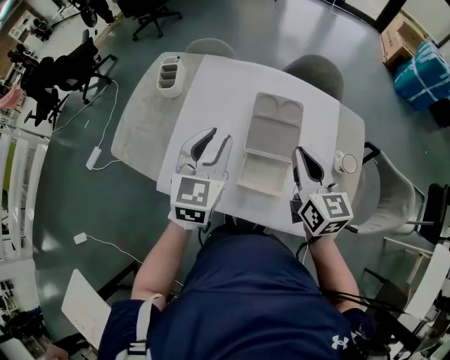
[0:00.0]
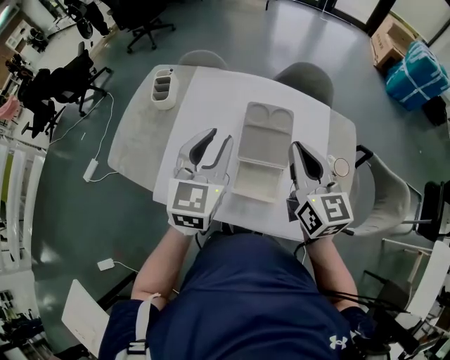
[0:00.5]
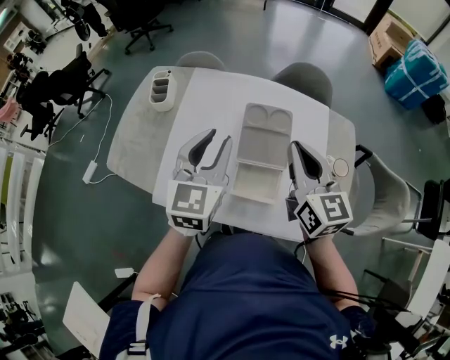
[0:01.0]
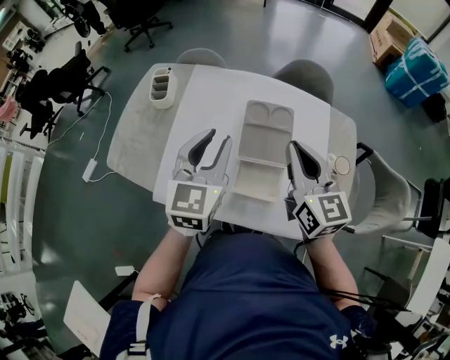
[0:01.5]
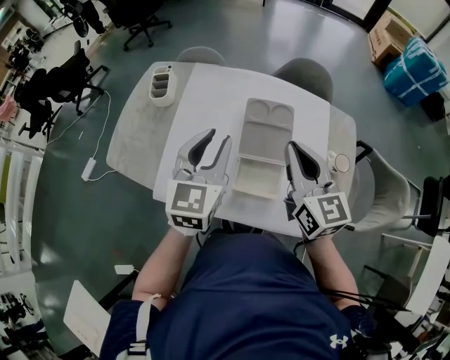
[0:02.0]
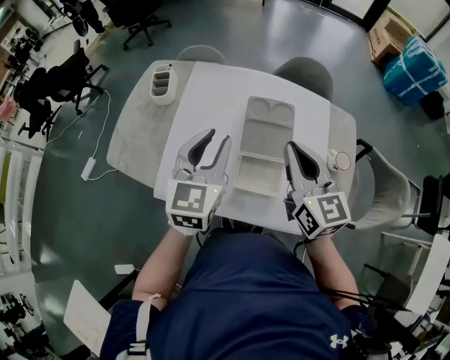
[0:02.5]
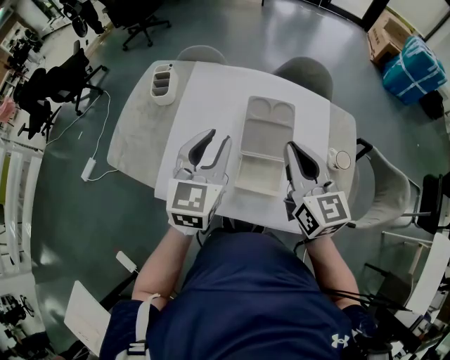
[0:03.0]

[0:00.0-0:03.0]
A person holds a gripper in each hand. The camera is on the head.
0:00.0 to 0:01.5: The right gripper goes roughly 5 cm upward.
0:01.5 to 0:03.0: The grippers move only a little.

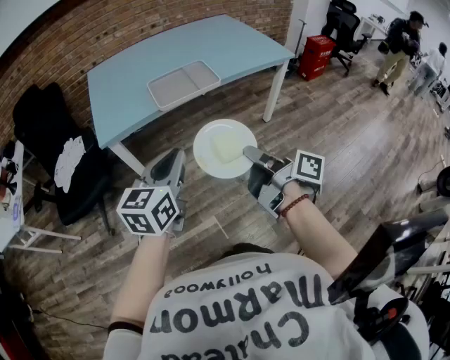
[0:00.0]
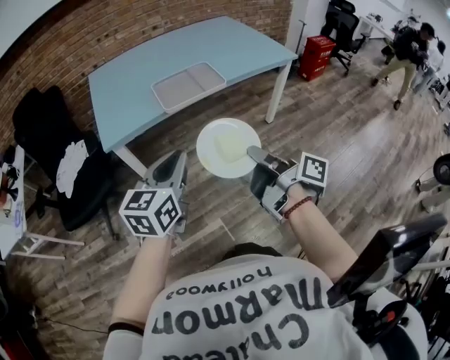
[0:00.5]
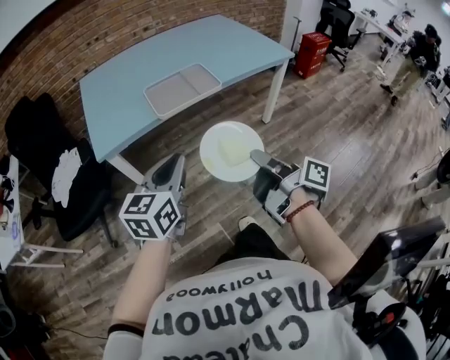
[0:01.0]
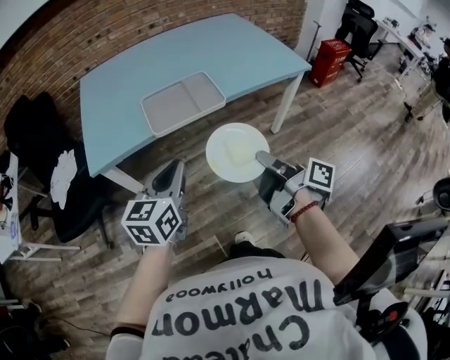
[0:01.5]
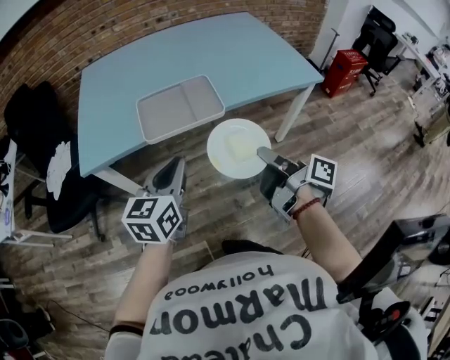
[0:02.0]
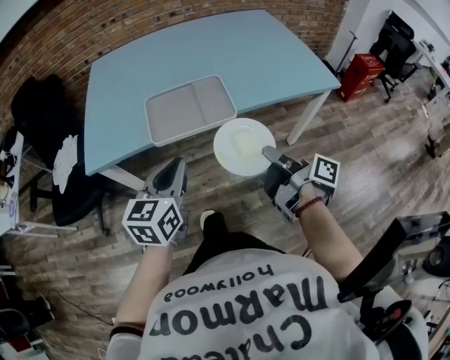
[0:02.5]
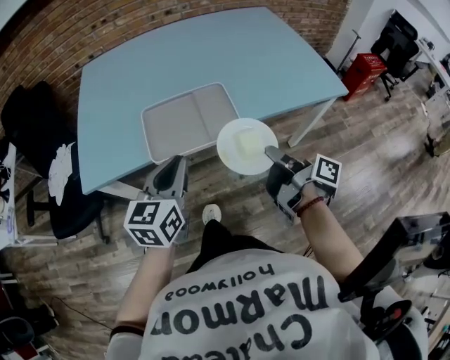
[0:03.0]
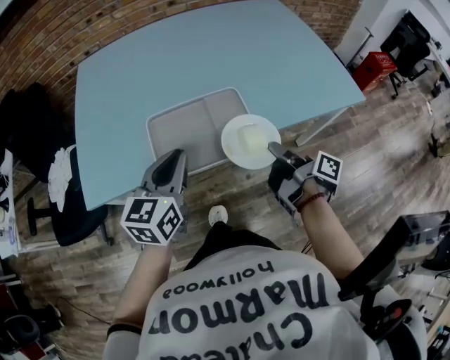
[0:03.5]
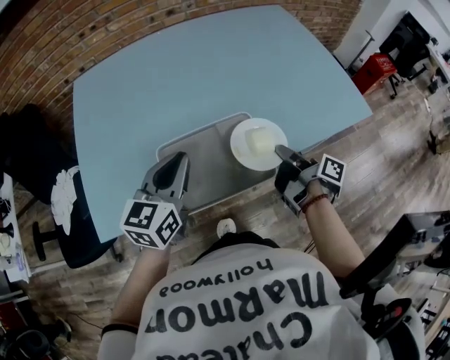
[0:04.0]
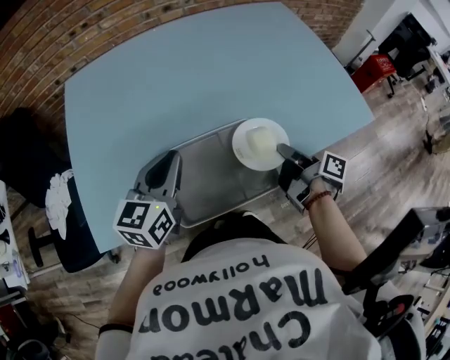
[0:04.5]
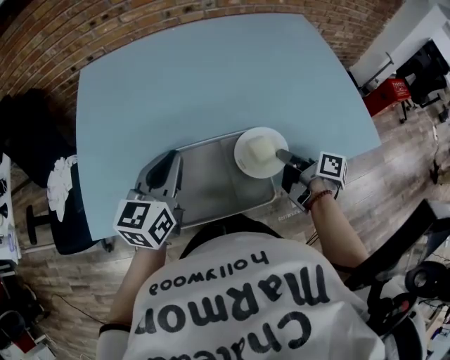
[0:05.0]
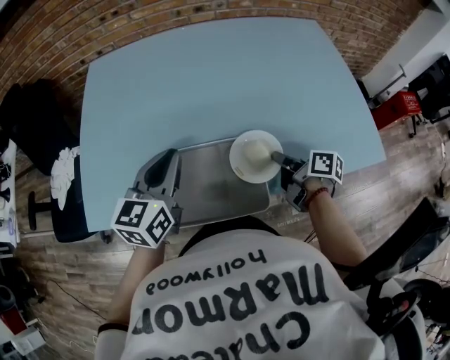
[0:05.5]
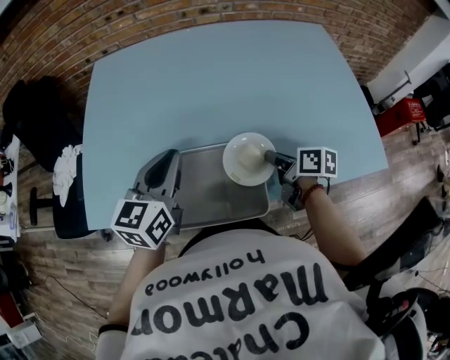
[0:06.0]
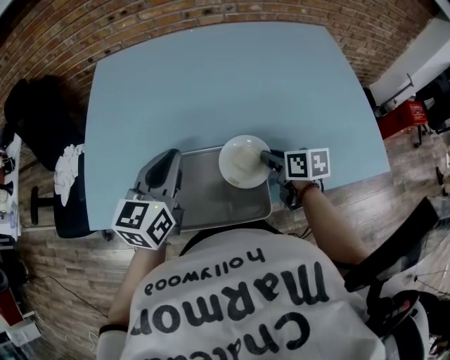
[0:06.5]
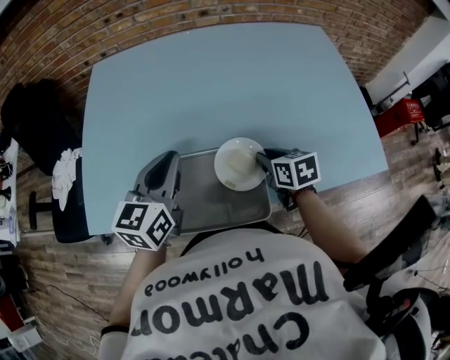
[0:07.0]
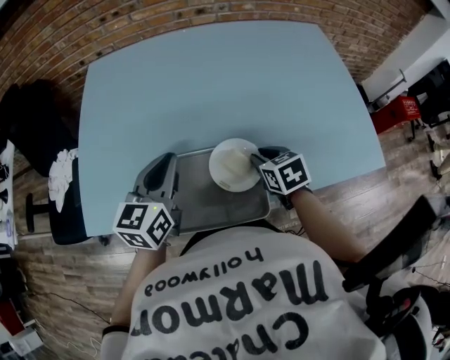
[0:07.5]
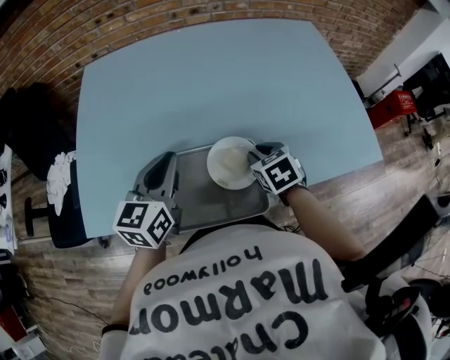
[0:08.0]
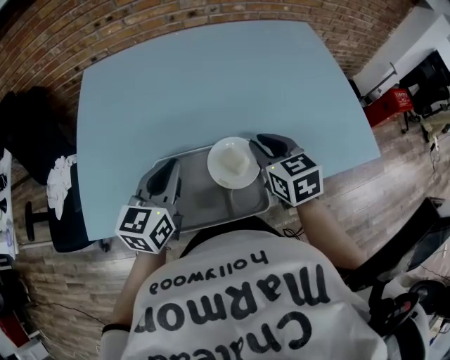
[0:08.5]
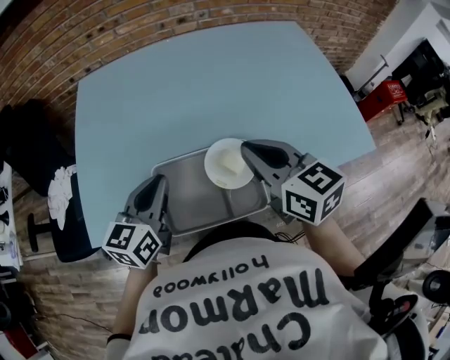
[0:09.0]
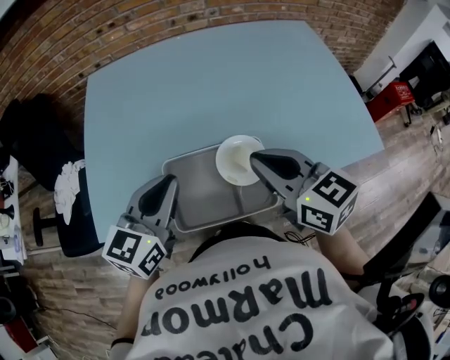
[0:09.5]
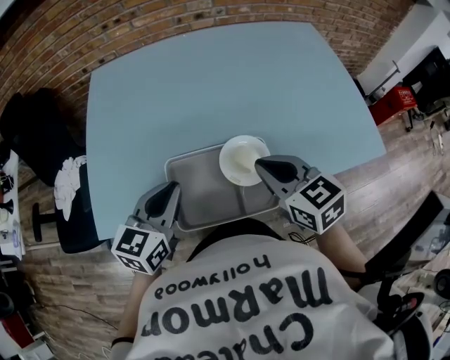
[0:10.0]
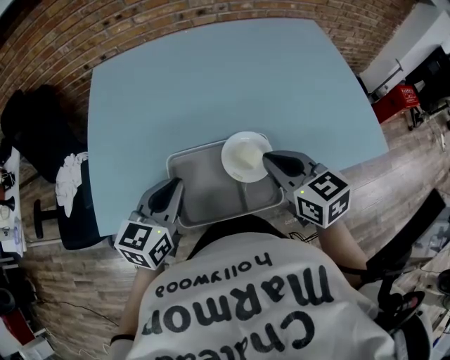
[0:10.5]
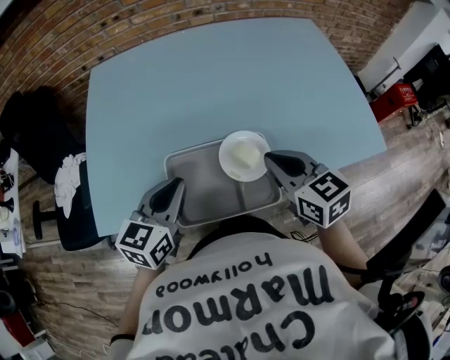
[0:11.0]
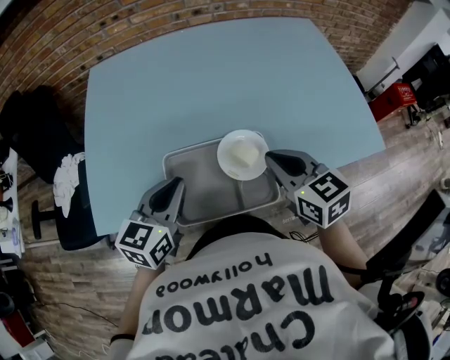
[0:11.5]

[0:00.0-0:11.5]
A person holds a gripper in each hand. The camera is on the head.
0:00.0 to 0:02.0: The right gripper shifts approximately 25 cm forward and to the right, while the left gripper heads forward, covering some 20 cm.
0:02.0 to 0:04.0: Both grippers travel together forward, approximately 30 cm.
0:04.0 to 0:06.0: The right gripper travels forward by approximately 10 cm, and rotates some 50 degrees. The left gripper is displaced forward by approximately 5 cm.
0:06.0 to 0:07.5: The right gripper twists approximately 40 degrees counterclockwise, seen from behind.
0:07.5 to 0:09.5: The left gripper goes about 10 cm backward and upward. Meanwhile the right gripper heads upward and backward, covering some 20 cm, and tips its fingers upward by some 30 degrees.
0:09.5 to 0:11.5: The grippers both shift downward by some 5 cm.

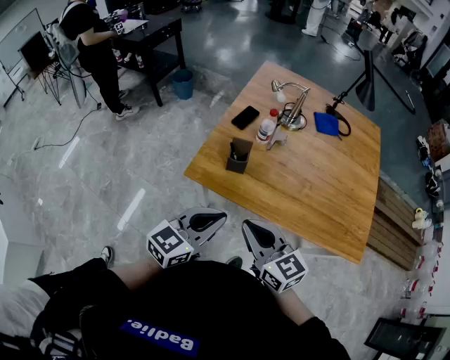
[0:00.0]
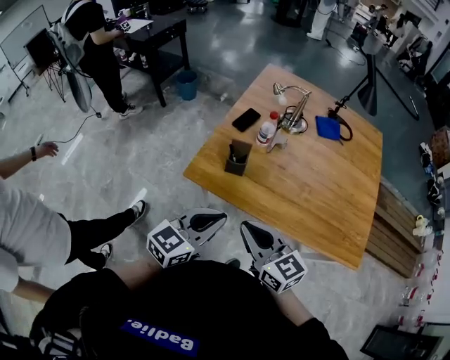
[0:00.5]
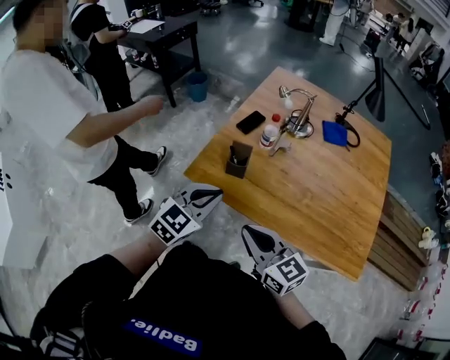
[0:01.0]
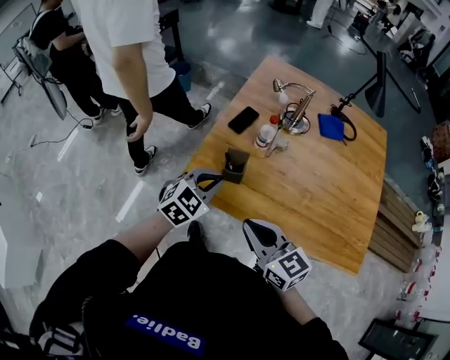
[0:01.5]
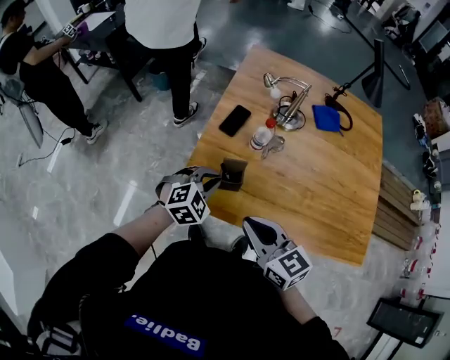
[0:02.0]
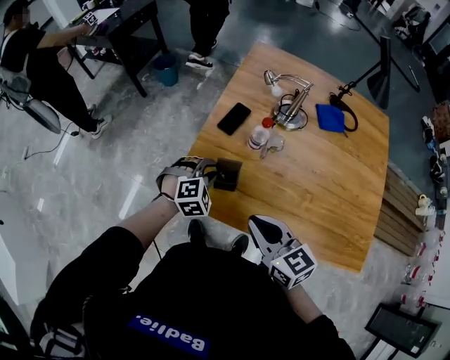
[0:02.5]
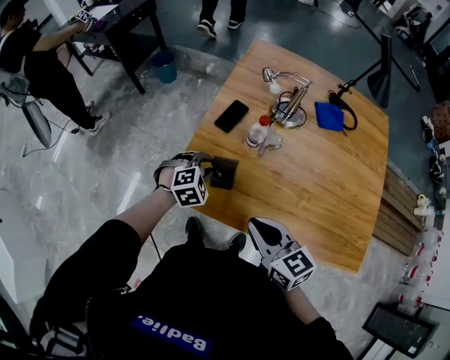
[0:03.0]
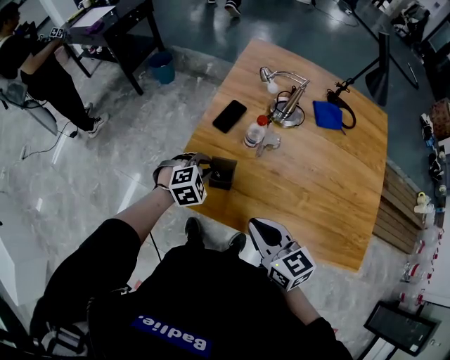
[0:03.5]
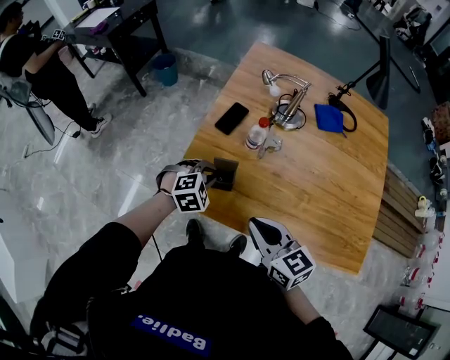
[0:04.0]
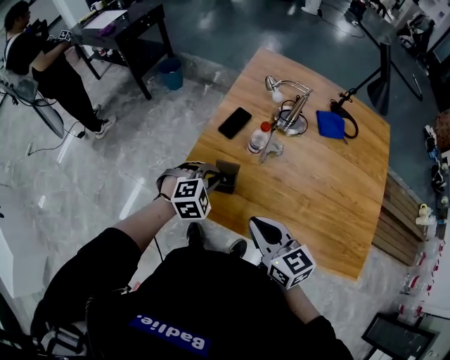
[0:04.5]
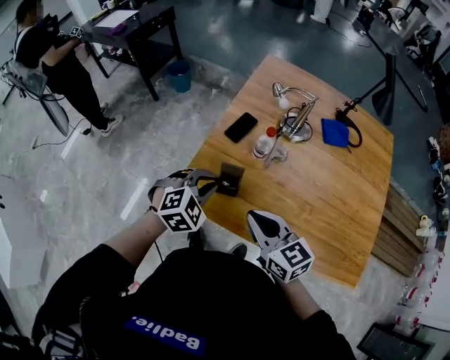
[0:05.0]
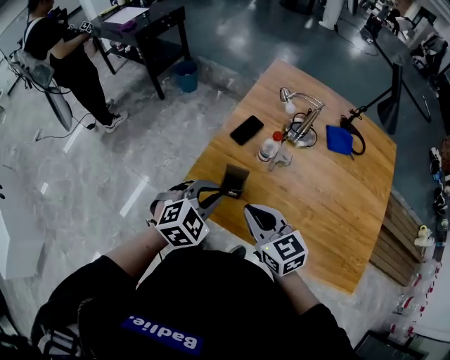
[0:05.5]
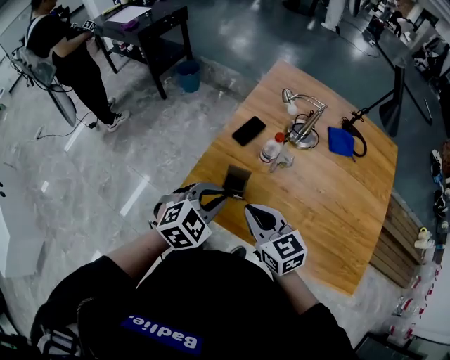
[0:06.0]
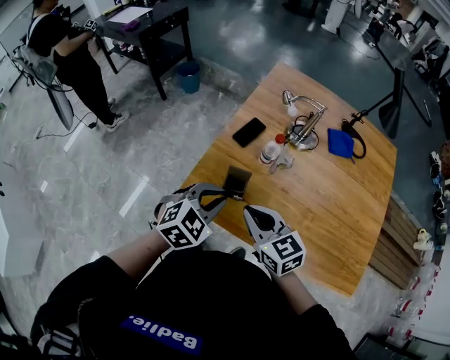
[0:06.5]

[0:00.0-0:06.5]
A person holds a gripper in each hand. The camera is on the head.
0:00.0 to 0:02.0: The right gripper moves forward, about 15 cm. The left gripper moves forward and downward, roughly 30 cm, and tips its fingers downward by roughly 30 degrees.
0:02.0 to 0:04.5: The right gripper heads to the right, covering roughly 5 cm.
0:04.5 to 0:06.5: The right gripper shifts by some 5 cm. Meanwhile the left gripper travels upward and backward by some 10 cm, and rotates roughly 30 degrees.

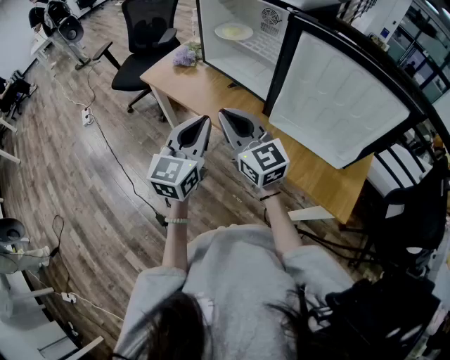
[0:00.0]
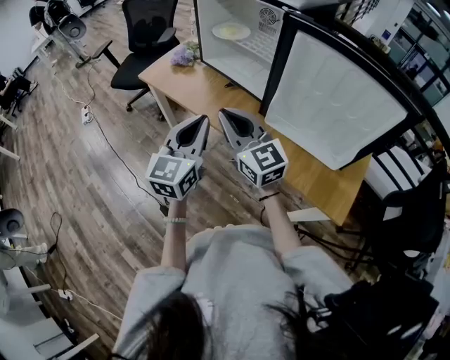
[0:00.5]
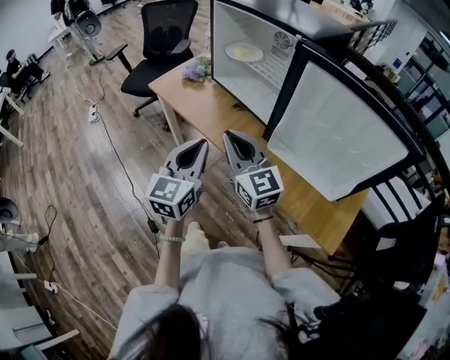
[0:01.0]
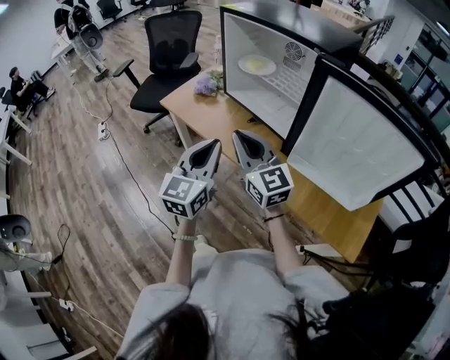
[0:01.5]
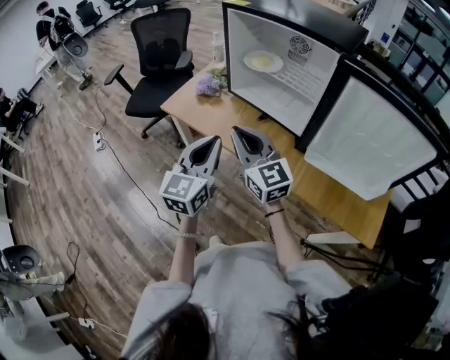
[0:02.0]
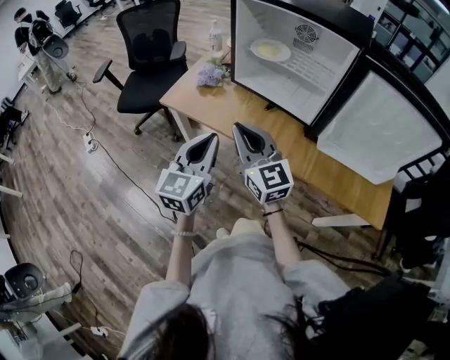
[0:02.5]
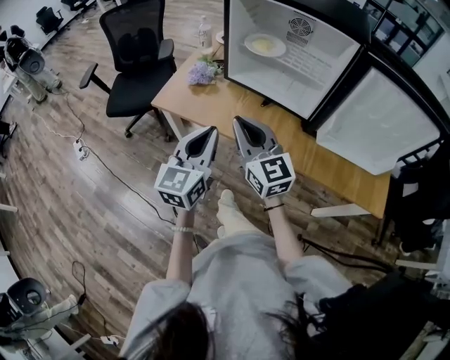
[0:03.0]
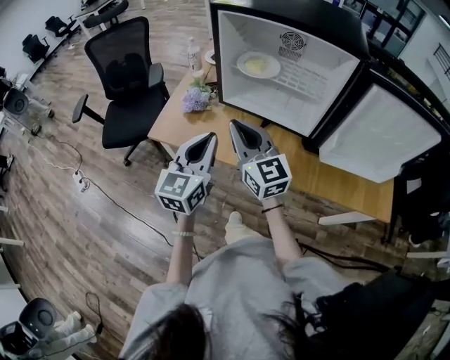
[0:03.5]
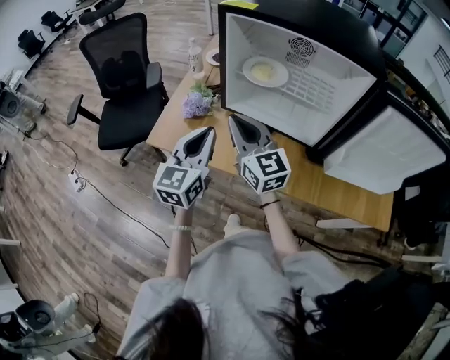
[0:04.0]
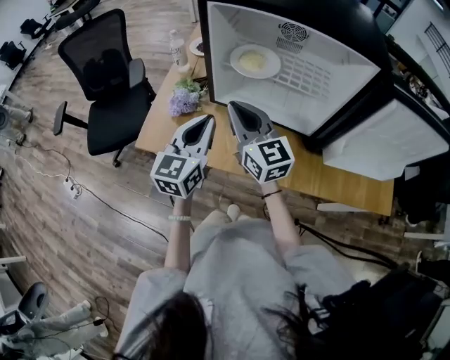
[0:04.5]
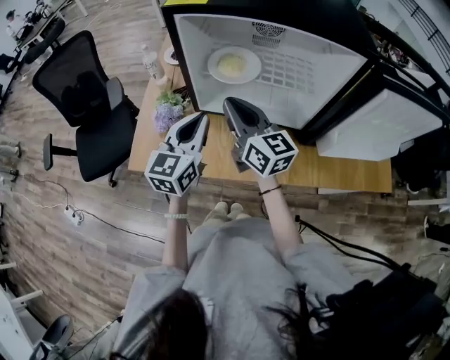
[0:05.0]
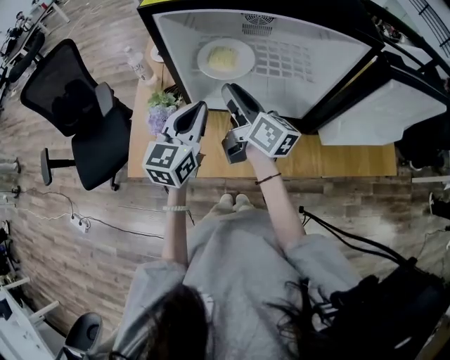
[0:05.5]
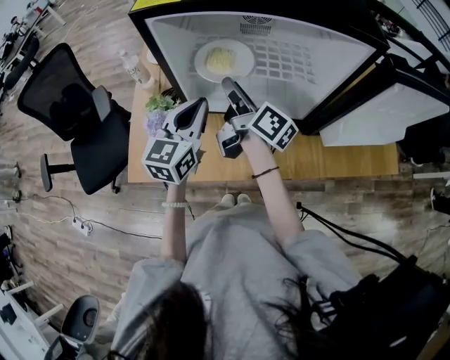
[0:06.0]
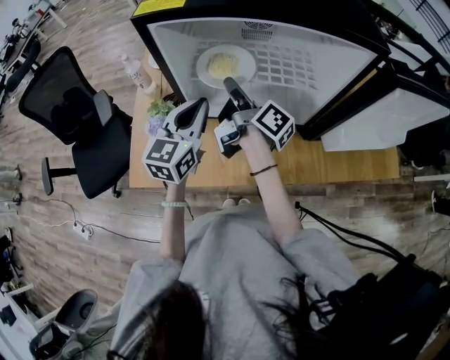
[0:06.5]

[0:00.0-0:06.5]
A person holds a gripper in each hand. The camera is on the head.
0:00.0 to 0:02.0: Both grippers move forward and to the left, about 15 cm.
0:02.0 to 0:04.5: Both grippers move forward, about 20 cm. The left gripper rotates about 20 degrees. The right gripper rotates approximately 20 degrees.
0:04.5 to 0:06.5: The right gripper is displaced forward and to the right by about 15 cm, rotates around the line of its fingers by roughly 70 degrees, clockwise from behind, and opens its fingers. The left gripper goes about 10 cm forward.
